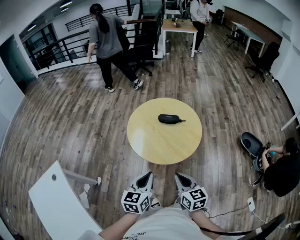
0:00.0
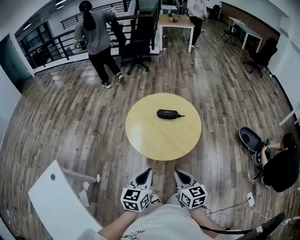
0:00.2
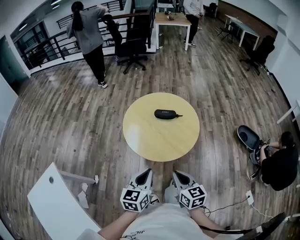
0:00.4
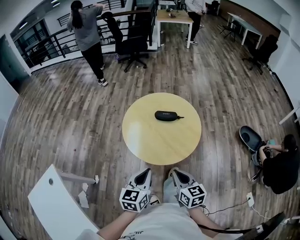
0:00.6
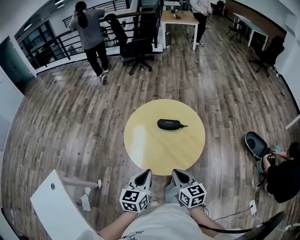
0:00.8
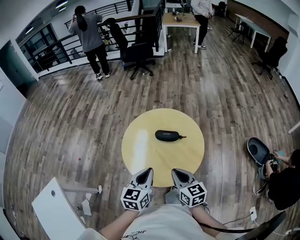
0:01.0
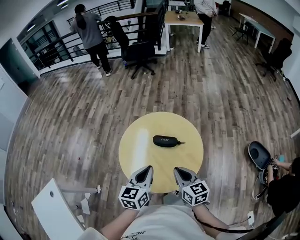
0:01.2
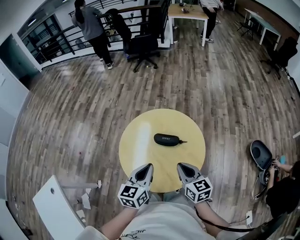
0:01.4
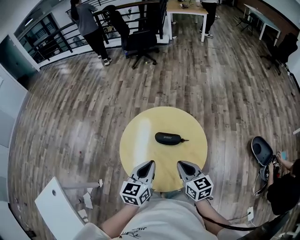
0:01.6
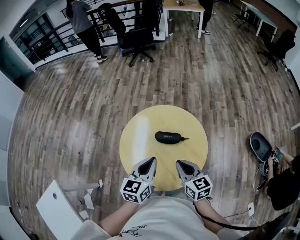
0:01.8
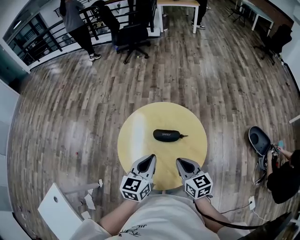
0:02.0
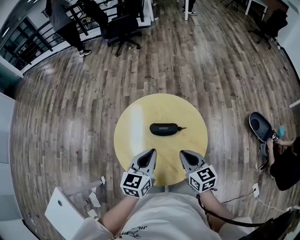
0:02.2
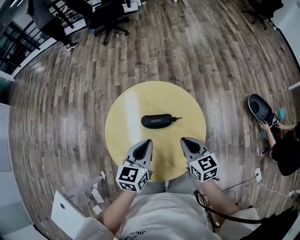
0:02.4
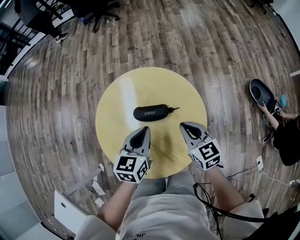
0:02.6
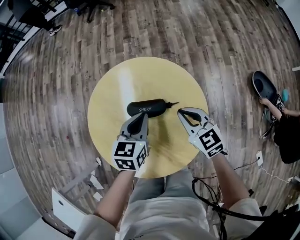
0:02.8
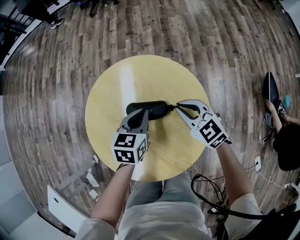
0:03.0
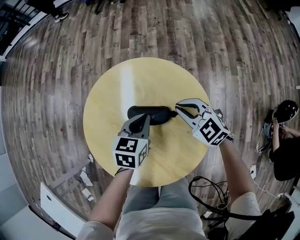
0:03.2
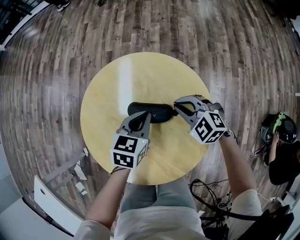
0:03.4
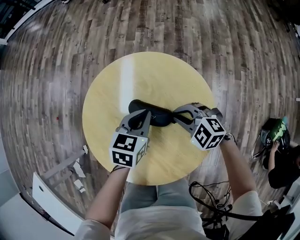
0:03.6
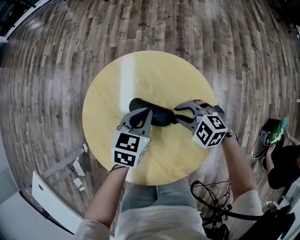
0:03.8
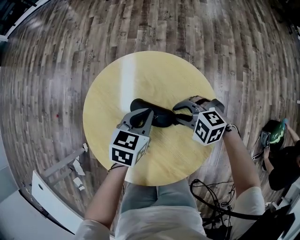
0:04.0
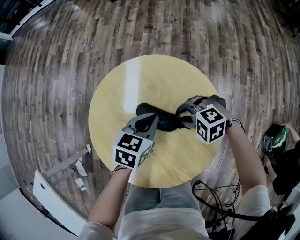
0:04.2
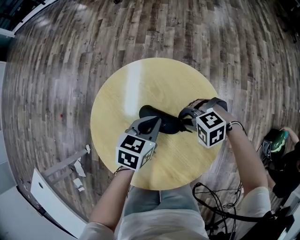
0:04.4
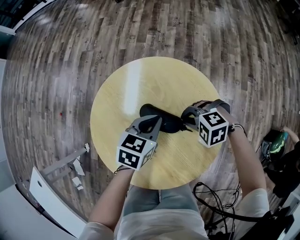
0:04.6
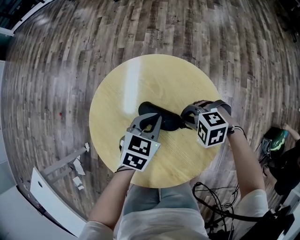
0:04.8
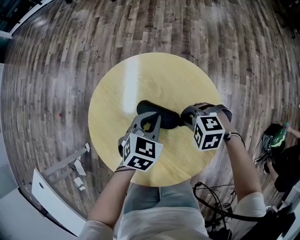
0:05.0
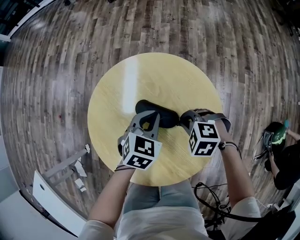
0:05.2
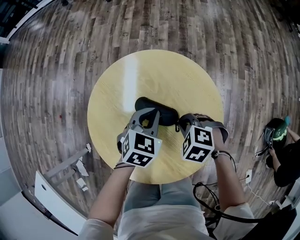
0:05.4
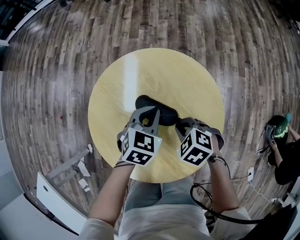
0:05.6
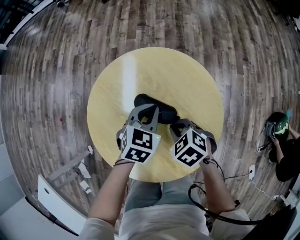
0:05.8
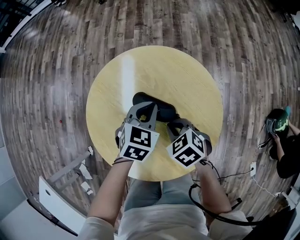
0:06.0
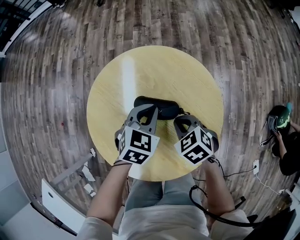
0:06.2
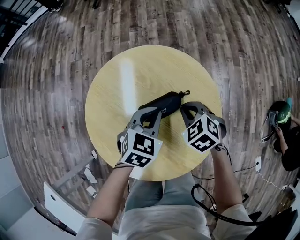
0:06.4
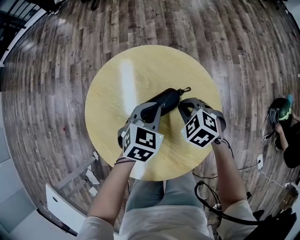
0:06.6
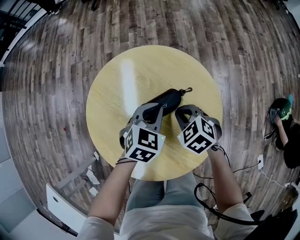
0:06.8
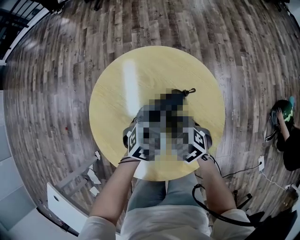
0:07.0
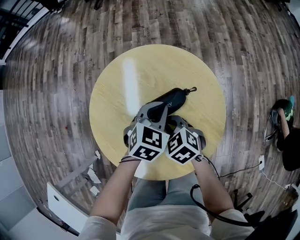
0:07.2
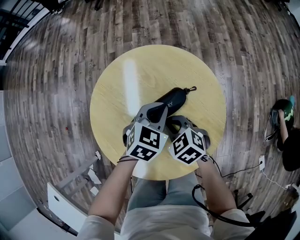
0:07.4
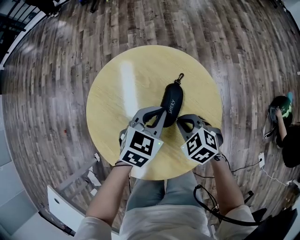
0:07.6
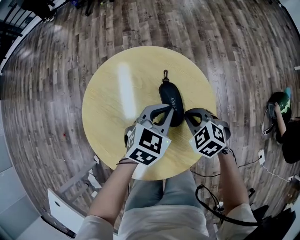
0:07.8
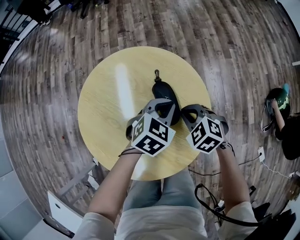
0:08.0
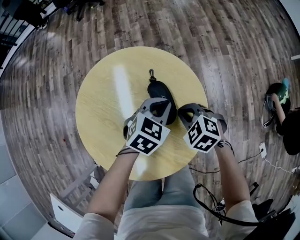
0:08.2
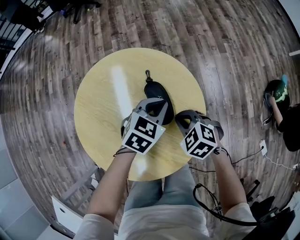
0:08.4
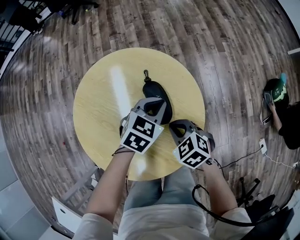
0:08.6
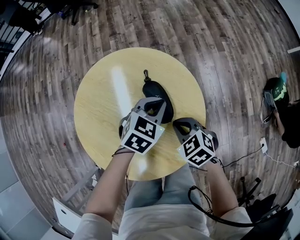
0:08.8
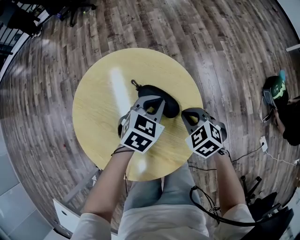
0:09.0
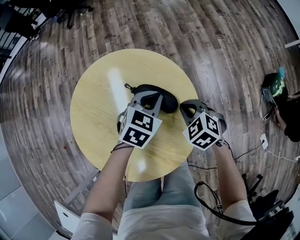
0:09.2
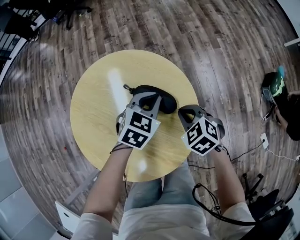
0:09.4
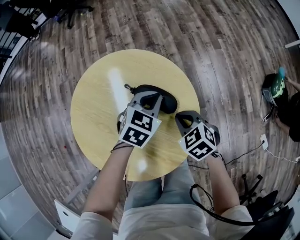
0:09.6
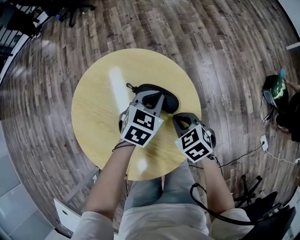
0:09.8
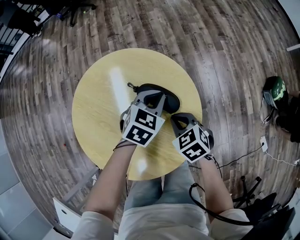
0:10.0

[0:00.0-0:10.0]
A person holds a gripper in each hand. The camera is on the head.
0:00.0 to 0:01.4: The two grippers go some 30 cm forward.
0:01.4 to 0:02.8: The grippers both shift downward and forward by approximately 25 cm.
0:02.8 to 0:04.2: The right gripper goes approximately 10 cm downward, and turns by about 80 degrees. The left gripper is displaced downward by about 5 cm.
0:04.2 to 0:05.8: The right gripper shifts by some 5 cm, and rolls clockwise, seen from behind, by approximately 50 degrees. Meanwhile the left gripper turns by approximately 20 degrees.
0:07.2 to 0:08.6: The grippers both shift to the right by some 10 cm.

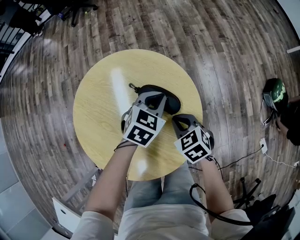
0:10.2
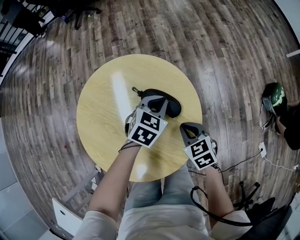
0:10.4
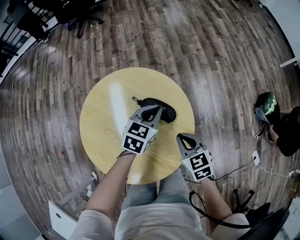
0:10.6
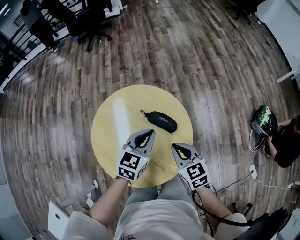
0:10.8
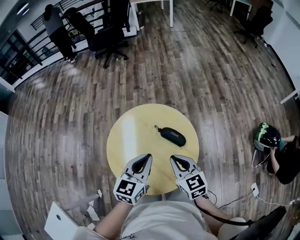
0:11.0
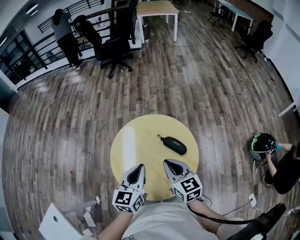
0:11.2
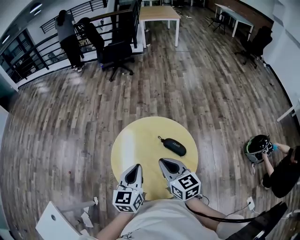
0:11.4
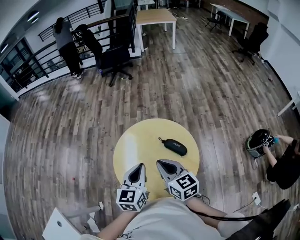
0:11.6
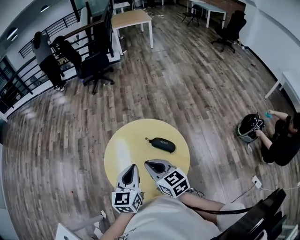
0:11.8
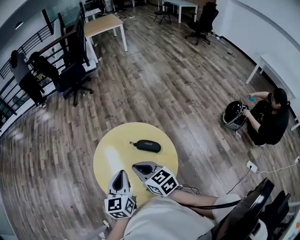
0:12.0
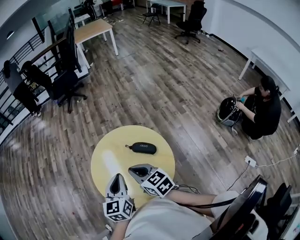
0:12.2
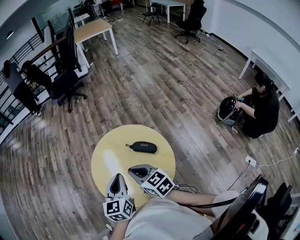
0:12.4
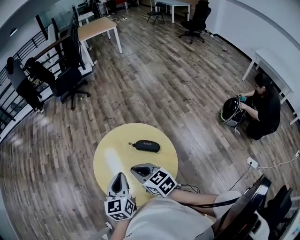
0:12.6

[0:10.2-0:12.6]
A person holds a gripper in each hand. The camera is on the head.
0:10.2 to 0:11.4: The left gripper moves upward, to the left and backward, roughly 40 cm, and changes its angle by roughly 50 degrees. Meanwhile the right gripper travels upward and to the left by about 35 cm, and points its fingers about 40 degrees further upward.
0:11.4 to 0:12.6: The grippers make only small movements.

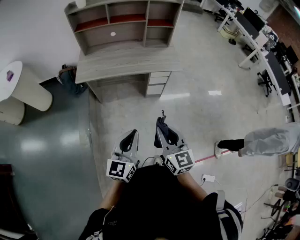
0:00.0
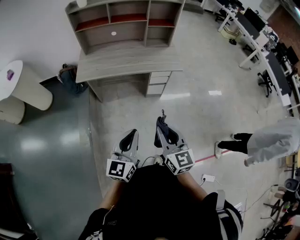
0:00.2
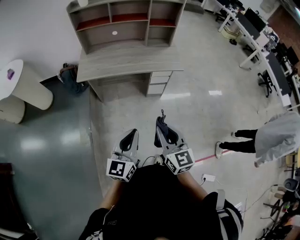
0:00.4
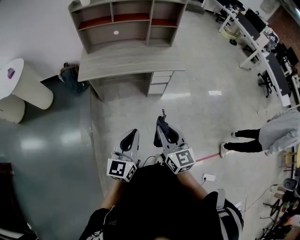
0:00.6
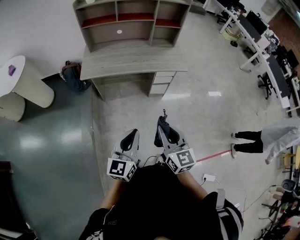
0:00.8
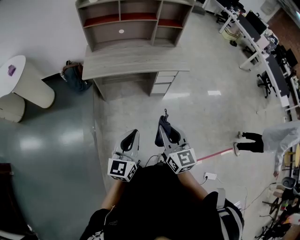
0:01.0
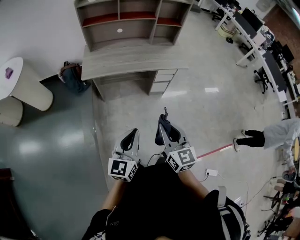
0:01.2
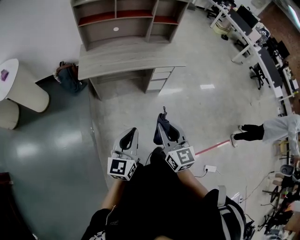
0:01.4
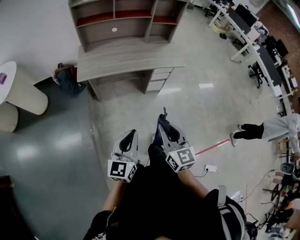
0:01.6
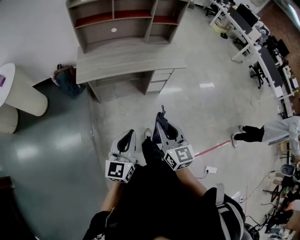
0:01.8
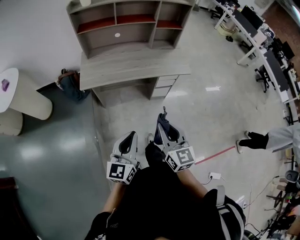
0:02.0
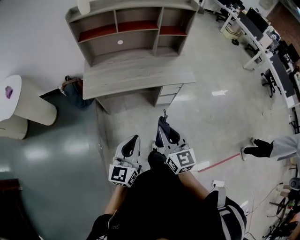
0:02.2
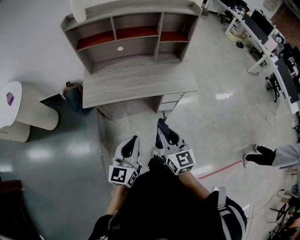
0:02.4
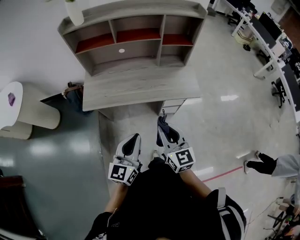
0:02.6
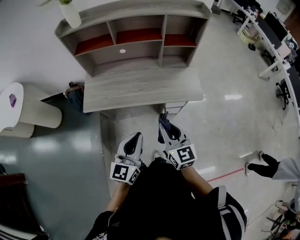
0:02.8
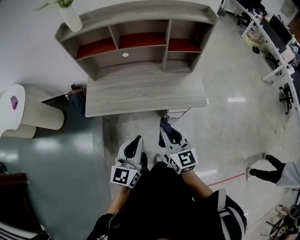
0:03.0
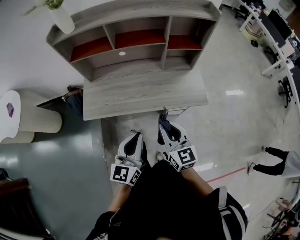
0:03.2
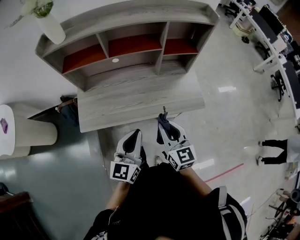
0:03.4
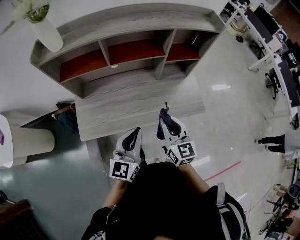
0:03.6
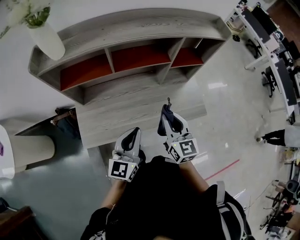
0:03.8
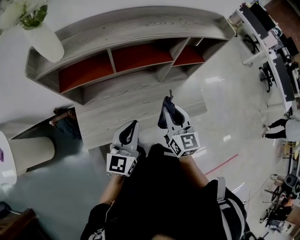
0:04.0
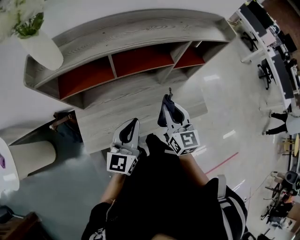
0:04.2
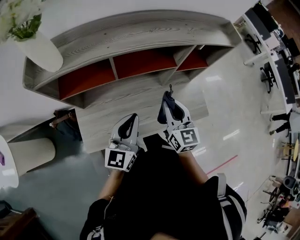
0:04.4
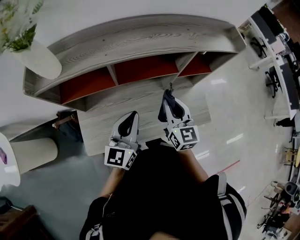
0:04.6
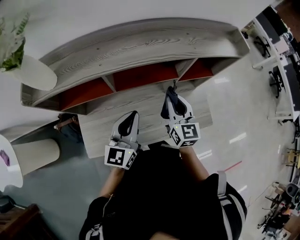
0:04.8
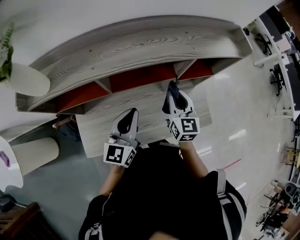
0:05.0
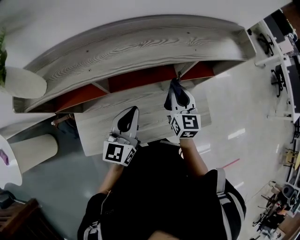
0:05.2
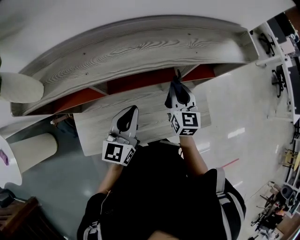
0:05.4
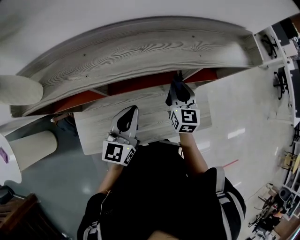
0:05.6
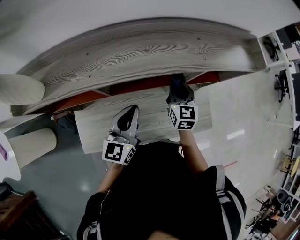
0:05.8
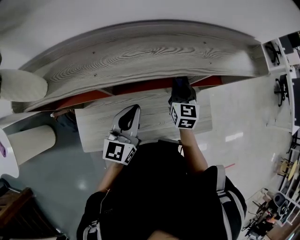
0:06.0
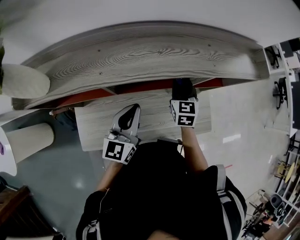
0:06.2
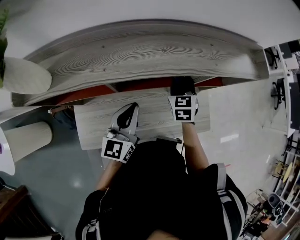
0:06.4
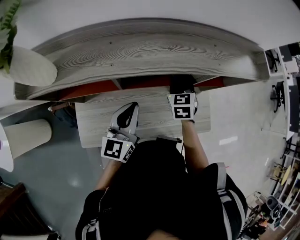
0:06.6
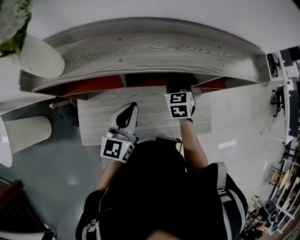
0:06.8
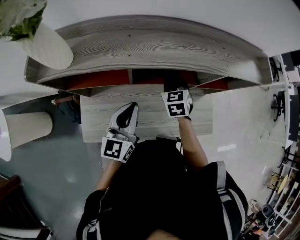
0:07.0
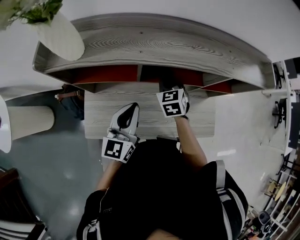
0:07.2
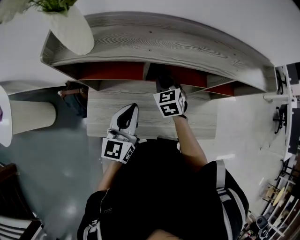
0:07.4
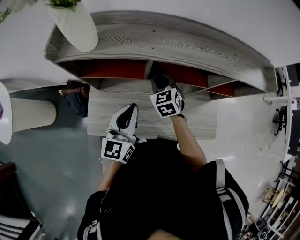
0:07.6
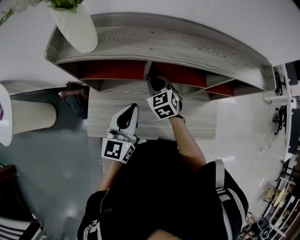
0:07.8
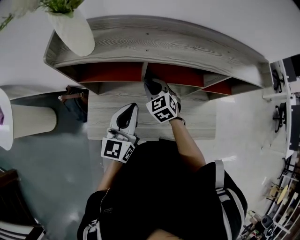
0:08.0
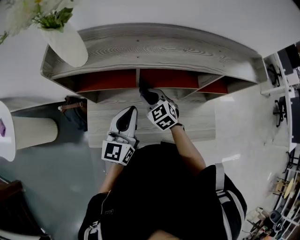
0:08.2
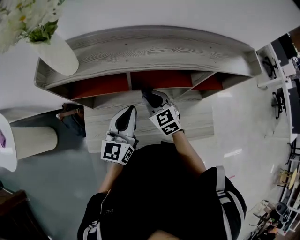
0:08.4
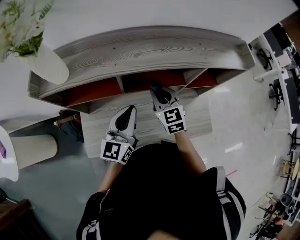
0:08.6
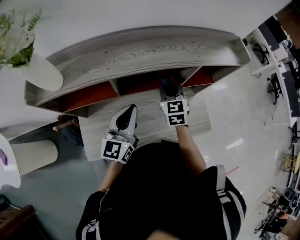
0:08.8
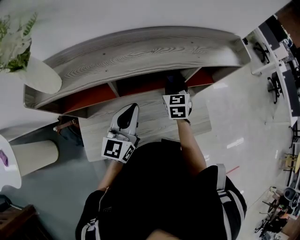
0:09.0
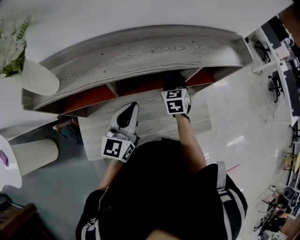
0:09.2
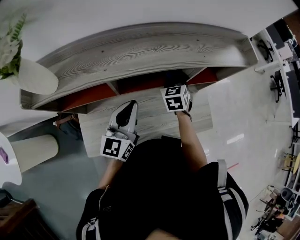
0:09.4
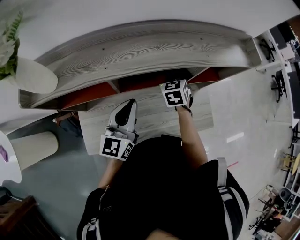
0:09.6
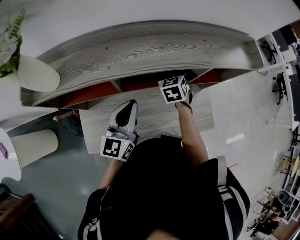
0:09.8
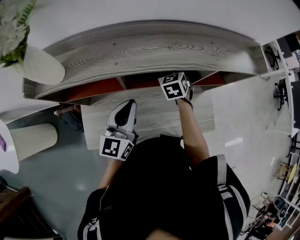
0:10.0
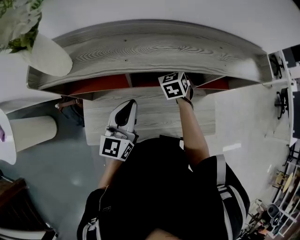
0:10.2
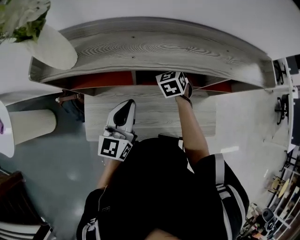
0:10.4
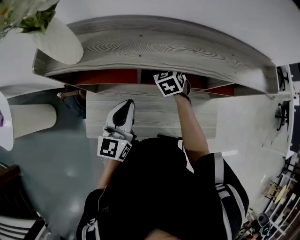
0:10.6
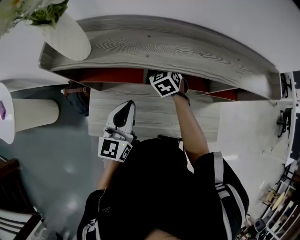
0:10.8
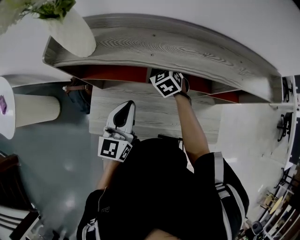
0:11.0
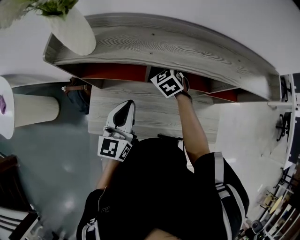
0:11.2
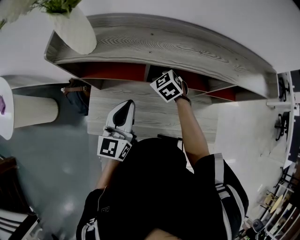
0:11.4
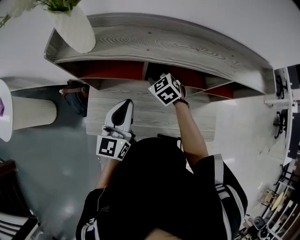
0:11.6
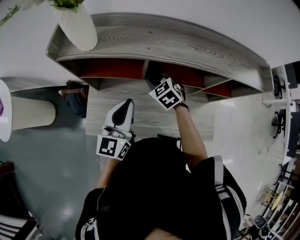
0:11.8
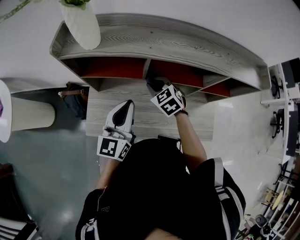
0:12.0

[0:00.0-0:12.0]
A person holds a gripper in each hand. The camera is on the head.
0:00.0 to 0:01.6: Both grippers travel together to the left, approximately 10 cm.
0:01.6 to 0:03.0: Both grippers move forward, roughly 35 cm.
0:03.0 to 0:04.4: The right gripper goes some 30 cm forward. Meanwhile the left gripper goes approximately 35 cm forward and to the left.
0:04.4 to 0:06.0: The right gripper is displaced forward by some 20 cm, while the left gripper goes some 15 cm forward.
0:06.0 to 0:07.6: The left gripper shifts some 15 cm to the left and backward, while the right gripper is displaced to the left by about 20 cm, and turns by roughly 40 degrees.
0:07.6 to 0:09.0: The right gripper ends up roughly 20 cm from where it was, and rotates about 30 degrees, while the left gripper shifts by some 10 cm.
0:09.0 to 0:10.4: The left gripper travels to the left by roughly 5 cm. The right gripper is displaced to the left by roughly 15 cm, and rotates some 30 degrees.
0:10.4 to 0:12.0: The right gripper heads backward and to the left, covering about 15 cm, and turns by approximately 30 degrees; the left gripper changes place by some 5 cm.
